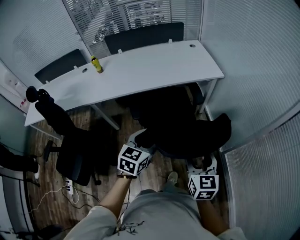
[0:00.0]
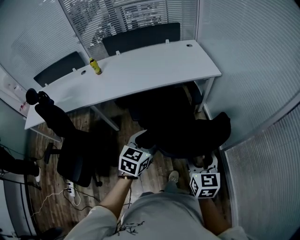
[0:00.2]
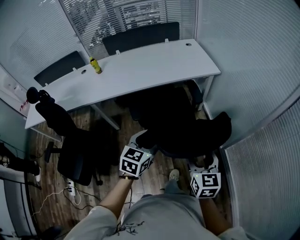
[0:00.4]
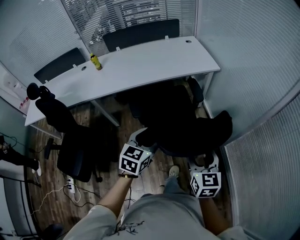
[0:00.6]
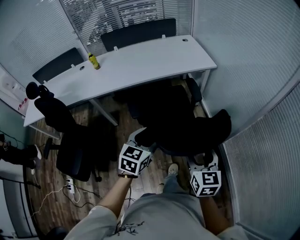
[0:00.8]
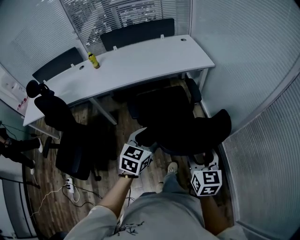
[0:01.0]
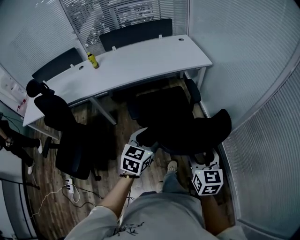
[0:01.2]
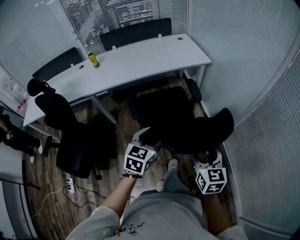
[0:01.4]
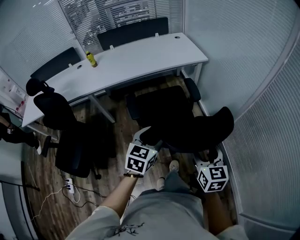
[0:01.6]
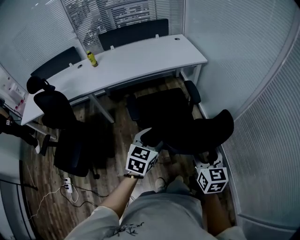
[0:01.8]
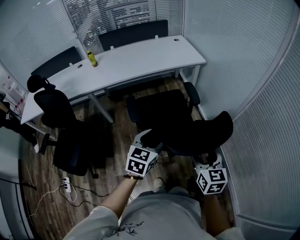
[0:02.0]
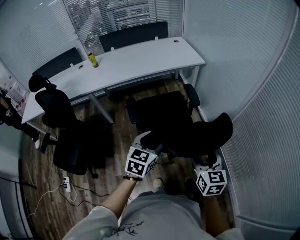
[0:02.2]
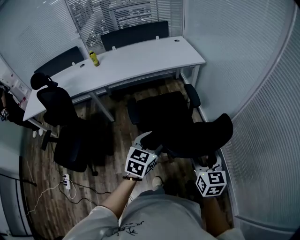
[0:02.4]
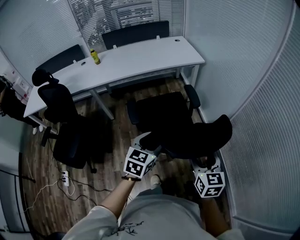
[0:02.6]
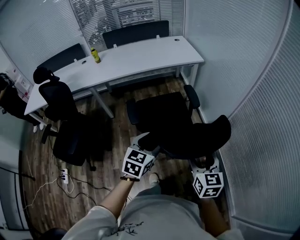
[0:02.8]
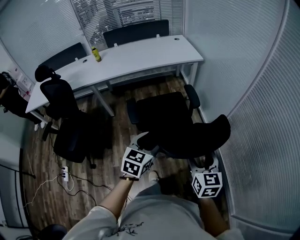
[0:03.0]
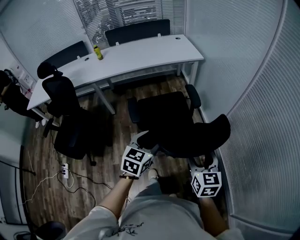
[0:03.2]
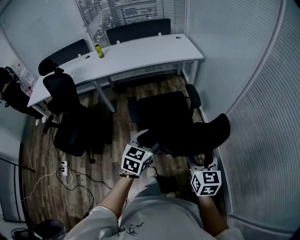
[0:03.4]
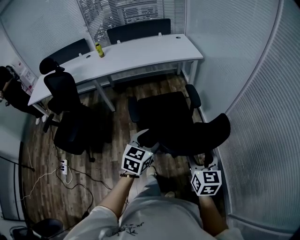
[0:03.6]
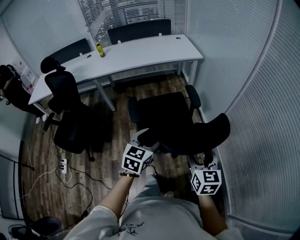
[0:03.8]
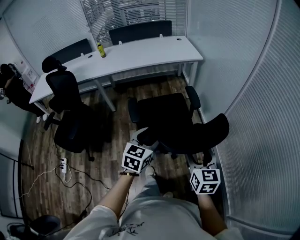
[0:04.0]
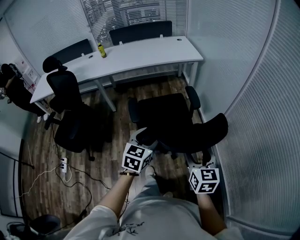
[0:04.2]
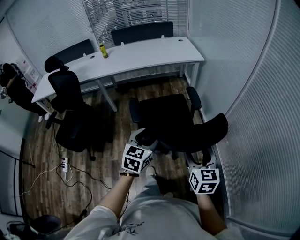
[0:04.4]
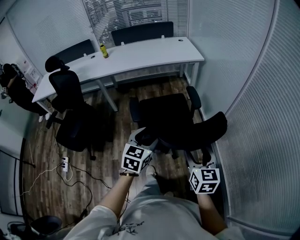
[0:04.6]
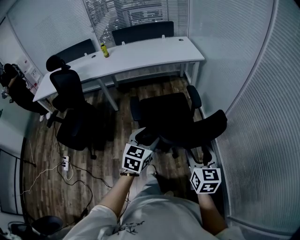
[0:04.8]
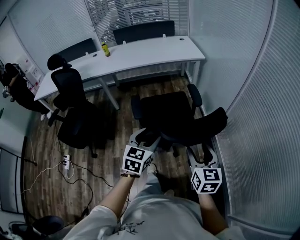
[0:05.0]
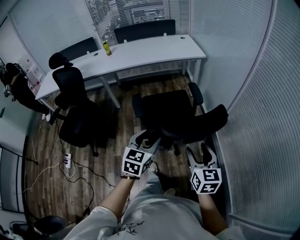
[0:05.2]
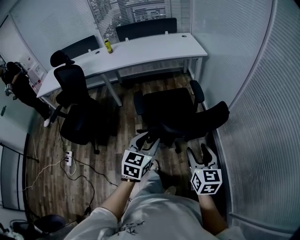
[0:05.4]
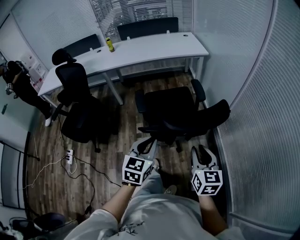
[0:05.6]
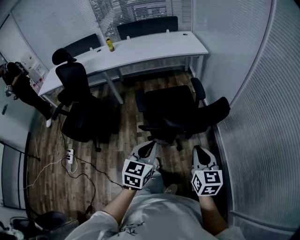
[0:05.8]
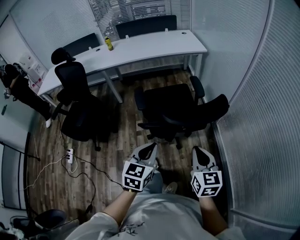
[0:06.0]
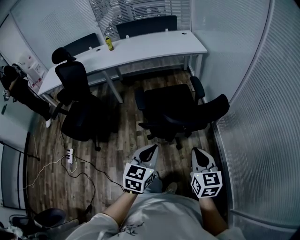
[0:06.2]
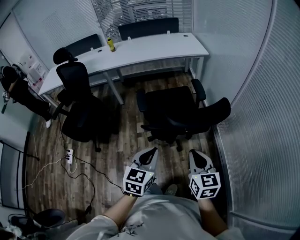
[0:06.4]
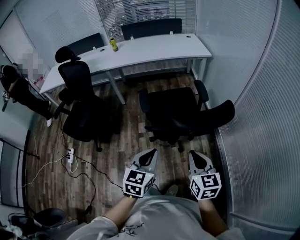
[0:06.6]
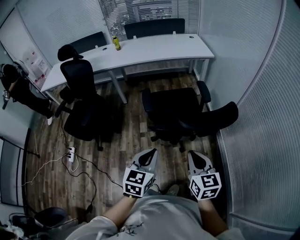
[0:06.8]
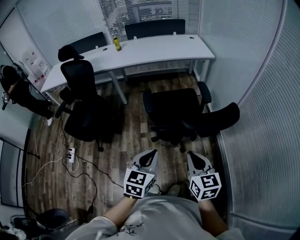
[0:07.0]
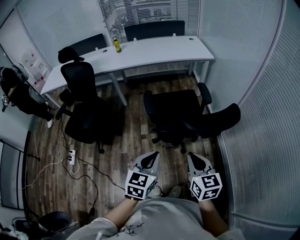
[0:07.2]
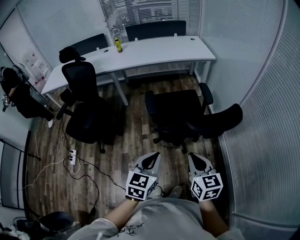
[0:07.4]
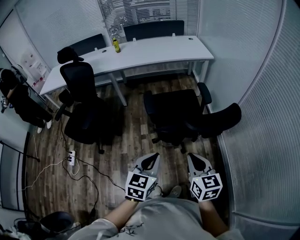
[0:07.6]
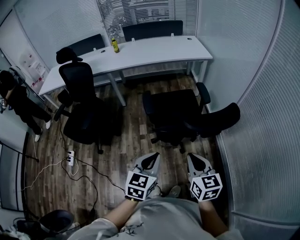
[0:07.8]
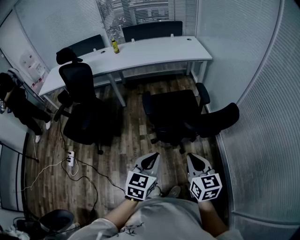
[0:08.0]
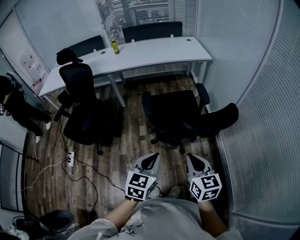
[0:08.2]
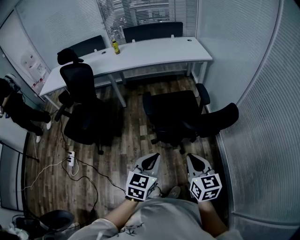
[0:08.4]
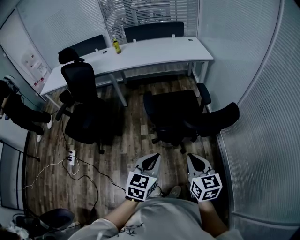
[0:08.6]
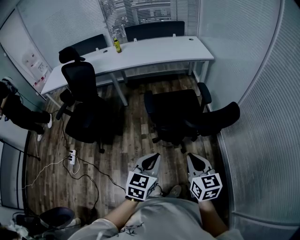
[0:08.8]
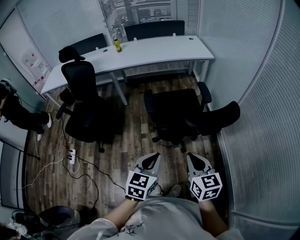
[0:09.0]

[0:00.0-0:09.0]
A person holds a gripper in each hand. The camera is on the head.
0:00.0 to 0:01.6: The two grippers go some 15 cm backward.
0:01.6 to 0:03.0: Both grippers move backward and to the right, approximately 15 cm.
0:03.0 to 0:04.4: The grippers both shift backward by about 5 cm.
0:04.4 to 0:06.0: The right gripper shifts about 10 cm backward, and closes up, while the left gripper goes about 15 cm backward, and closes its fingers.
0:06.0 to 0:07.6: Both grippers move to the left, approximately 10 cm.
0:07.6 to 0:09.0: The grippers move only a little.

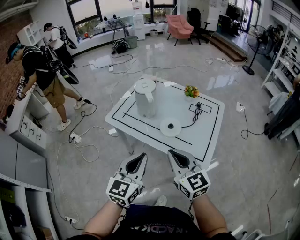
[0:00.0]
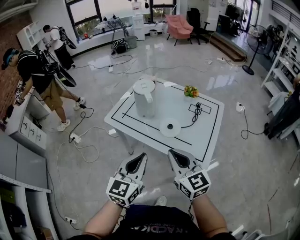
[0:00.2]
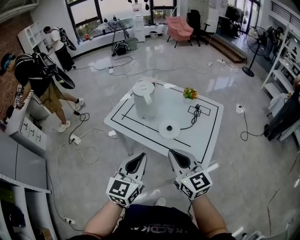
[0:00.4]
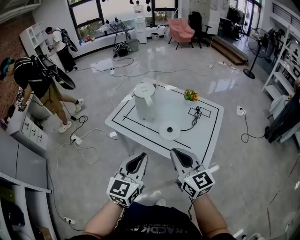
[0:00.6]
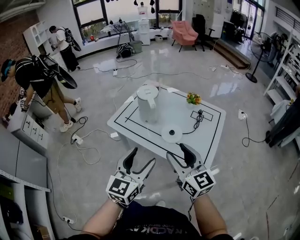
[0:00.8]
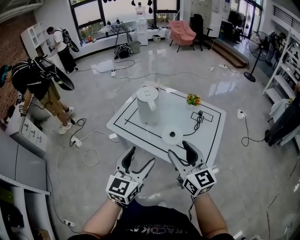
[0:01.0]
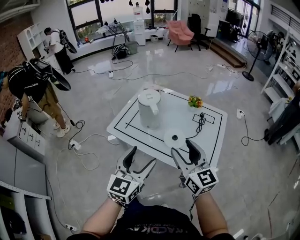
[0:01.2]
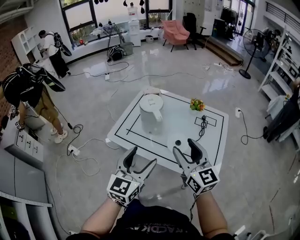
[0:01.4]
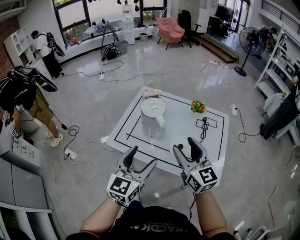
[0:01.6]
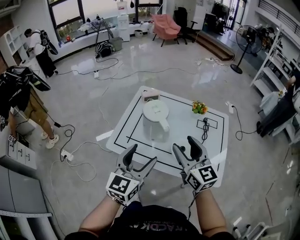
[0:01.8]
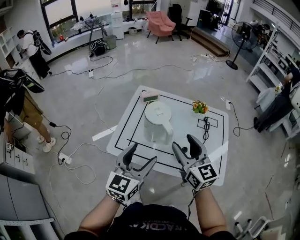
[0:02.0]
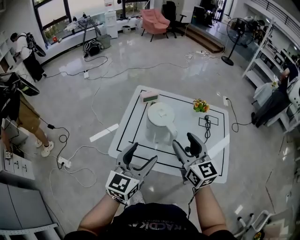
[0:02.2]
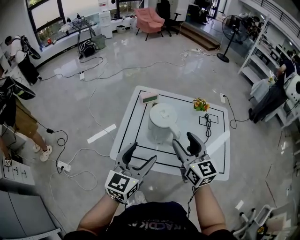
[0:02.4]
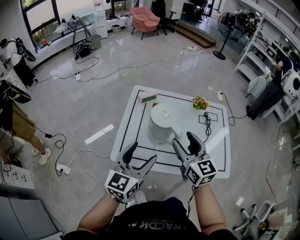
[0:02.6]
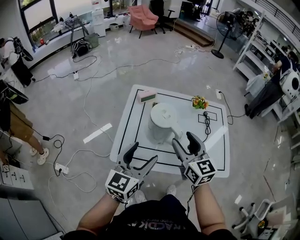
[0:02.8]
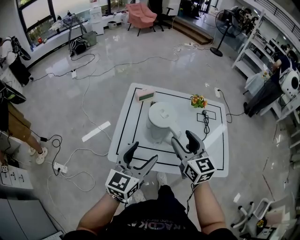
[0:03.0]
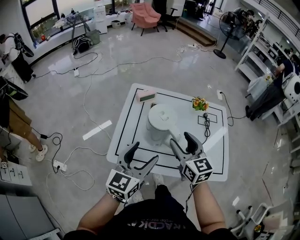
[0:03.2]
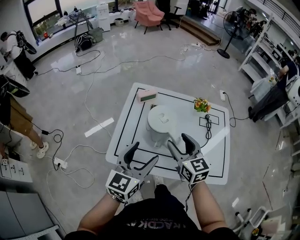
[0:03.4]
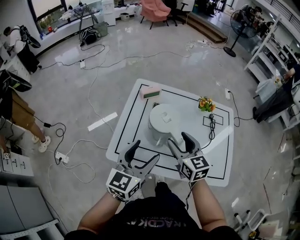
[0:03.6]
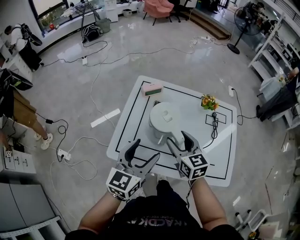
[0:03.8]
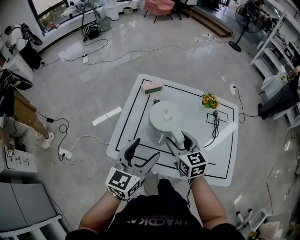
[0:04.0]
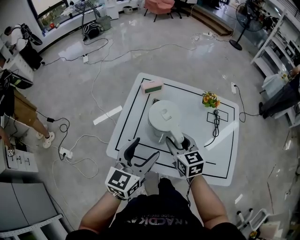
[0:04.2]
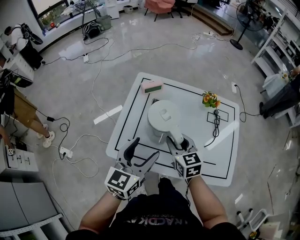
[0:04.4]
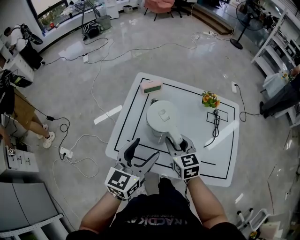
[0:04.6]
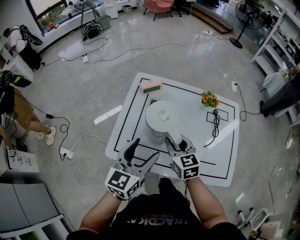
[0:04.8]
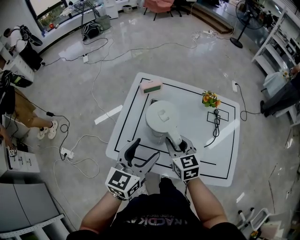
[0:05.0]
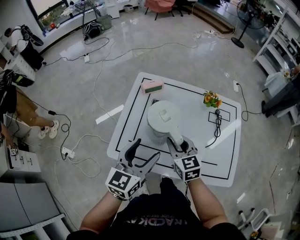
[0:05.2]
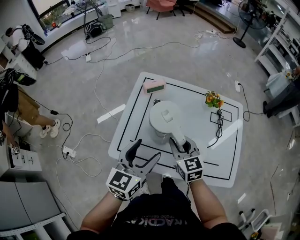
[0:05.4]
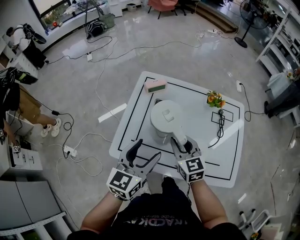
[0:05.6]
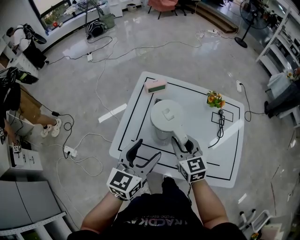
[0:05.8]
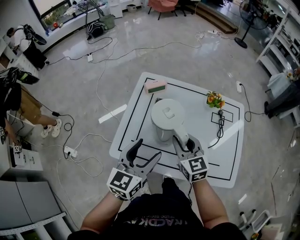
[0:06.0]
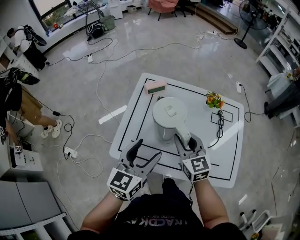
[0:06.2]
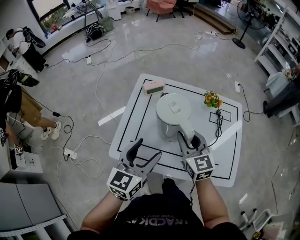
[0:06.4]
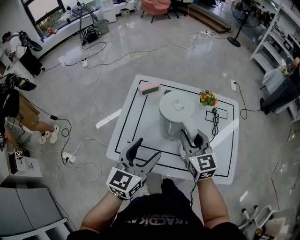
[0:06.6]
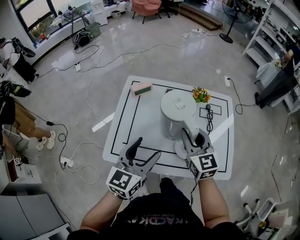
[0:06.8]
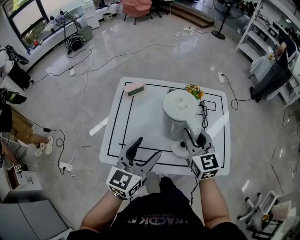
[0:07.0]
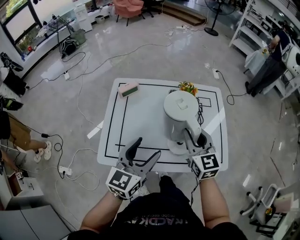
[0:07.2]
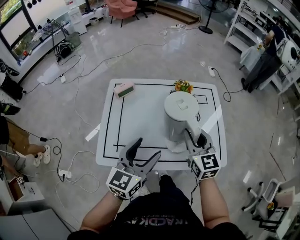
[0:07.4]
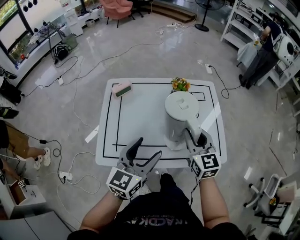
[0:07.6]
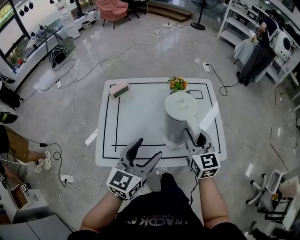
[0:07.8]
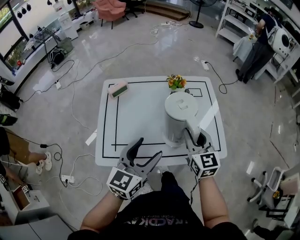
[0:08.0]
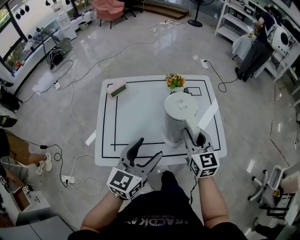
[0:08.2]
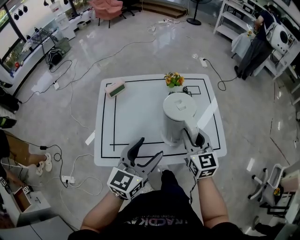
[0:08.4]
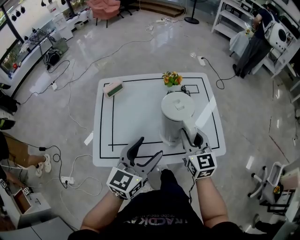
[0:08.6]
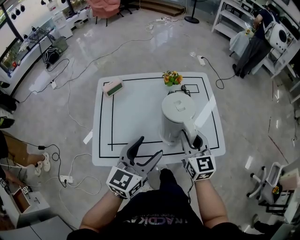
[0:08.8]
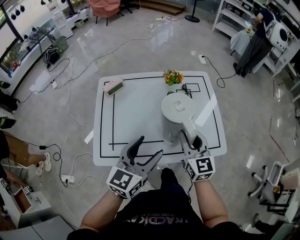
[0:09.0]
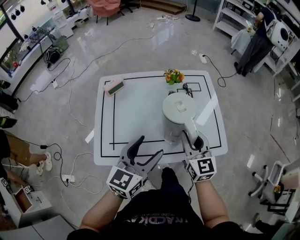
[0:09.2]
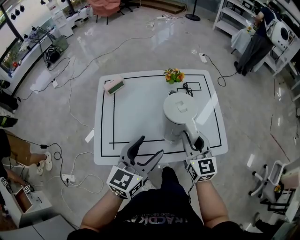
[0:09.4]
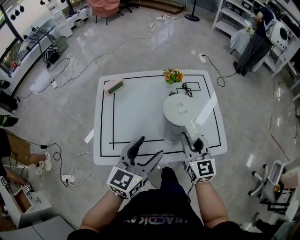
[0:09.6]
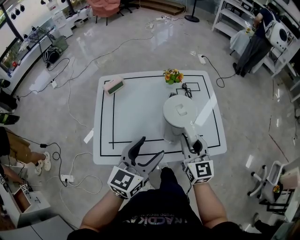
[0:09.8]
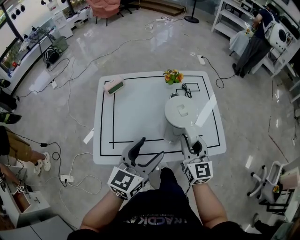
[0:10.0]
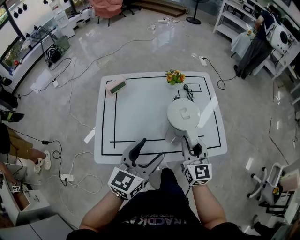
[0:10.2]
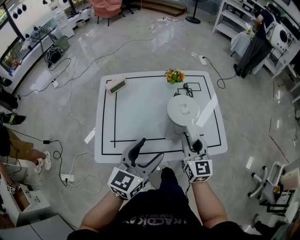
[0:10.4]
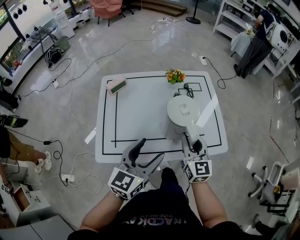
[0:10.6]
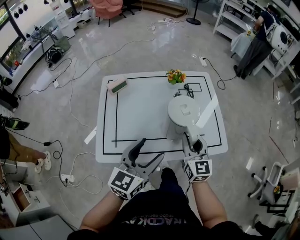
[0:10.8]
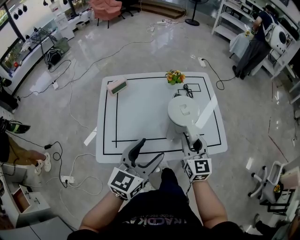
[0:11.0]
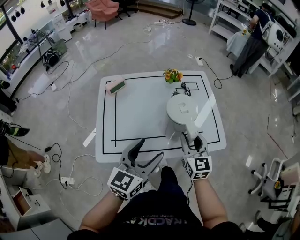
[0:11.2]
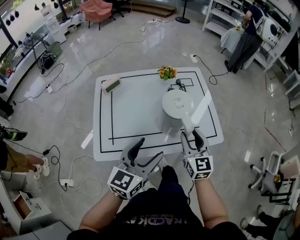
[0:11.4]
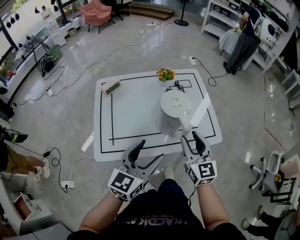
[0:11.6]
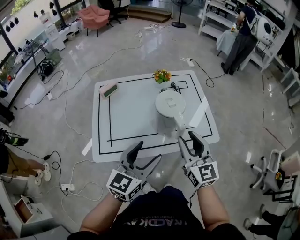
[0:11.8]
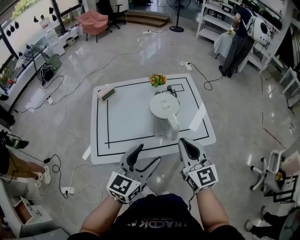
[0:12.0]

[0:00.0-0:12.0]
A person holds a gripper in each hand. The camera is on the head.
0:00.0 to 0:01.6: The right gripper goes approximately 15 cm forward, and opens up; the left gripper moves forward and to the left, approximately 15 cm, and opens.
0:01.6 to 0:03.0: Both grippers travel together to the left and forward, roughly 15 cm.
0:03.0 to 0:04.4: The left gripper ends up roughly 5 cm from where it was. Meanwhile the right gripper moves downward and forward, some 15 cm, and closes.
0:04.4 to 0:06.0: There are only small adjustments of the grippers.
0:06.0 to 0:07.6: The left gripper goes approximately 10 cm to the right; the right gripper heads to the right, covering roughly 15 cm, and changes its angle by approximately 20 degrees.
0:07.6 to 0:09.0: The grippers make only small movements.
0:09.0 to 0:10.4: The grippers move only a little.
0:10.4 to 0:12.0: The left gripper heads backward and to the right, covering approximately 10 cm. Meanwhile the right gripper shifts roughly 15 cm backward and upward, and closes up.

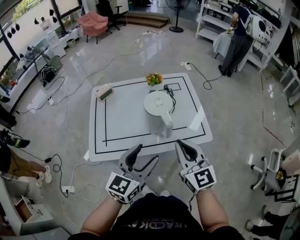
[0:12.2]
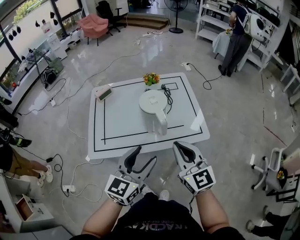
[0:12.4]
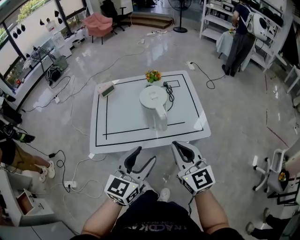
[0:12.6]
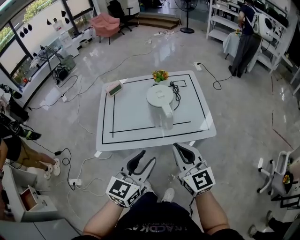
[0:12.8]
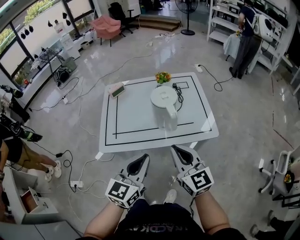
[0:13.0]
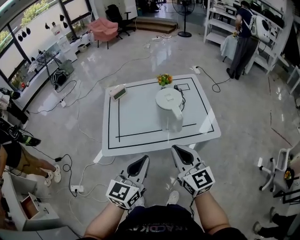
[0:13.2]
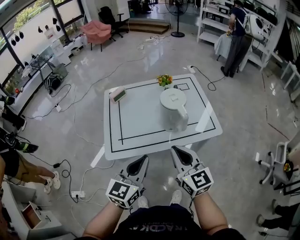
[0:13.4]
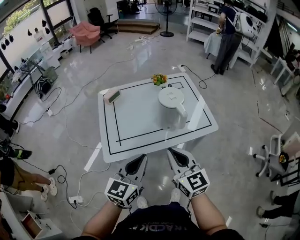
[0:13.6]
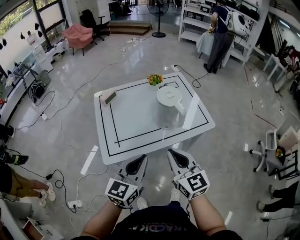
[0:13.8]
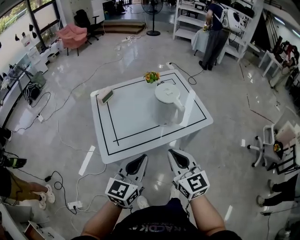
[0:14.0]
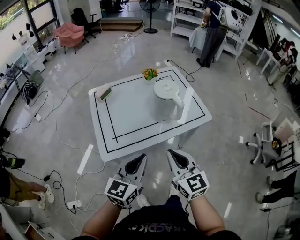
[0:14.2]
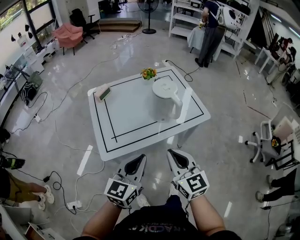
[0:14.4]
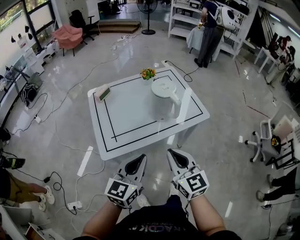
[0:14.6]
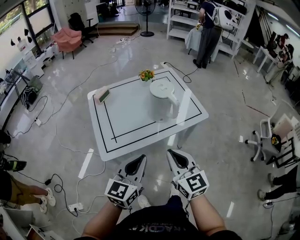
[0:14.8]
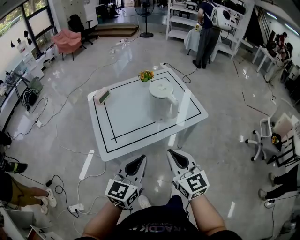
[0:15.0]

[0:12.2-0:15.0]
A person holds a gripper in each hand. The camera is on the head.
0:12.2 to 0:13.6: The two grippers go approximately 15 cm to the left and backward. The left gripper closes its fingers.
0:13.6 to 0:15.0: The grippers both shift backward by some 5 cm.
